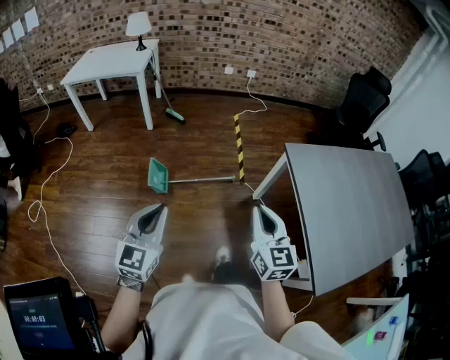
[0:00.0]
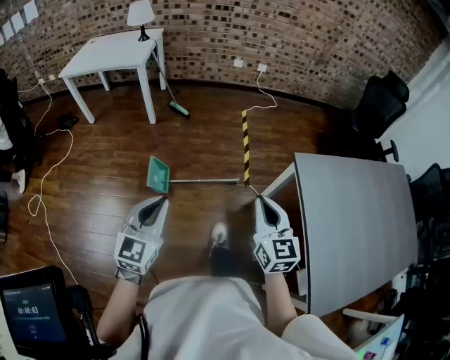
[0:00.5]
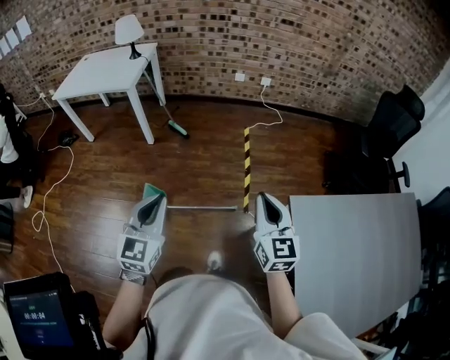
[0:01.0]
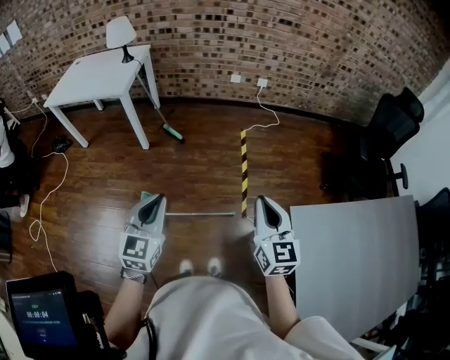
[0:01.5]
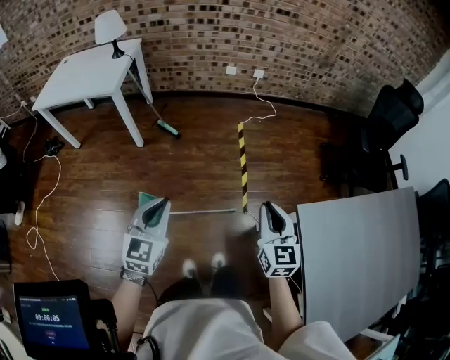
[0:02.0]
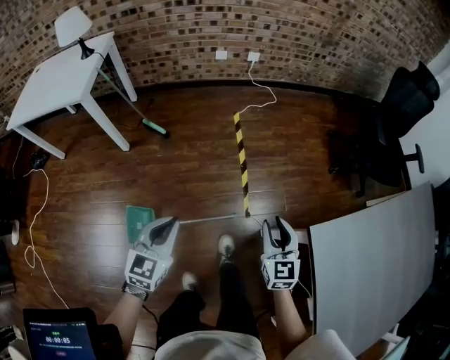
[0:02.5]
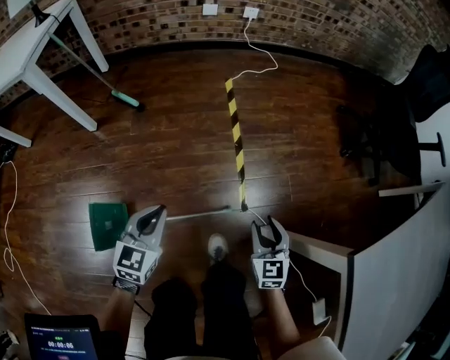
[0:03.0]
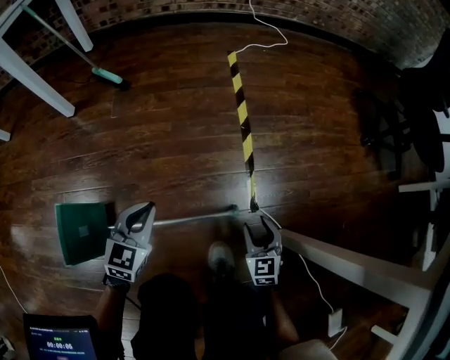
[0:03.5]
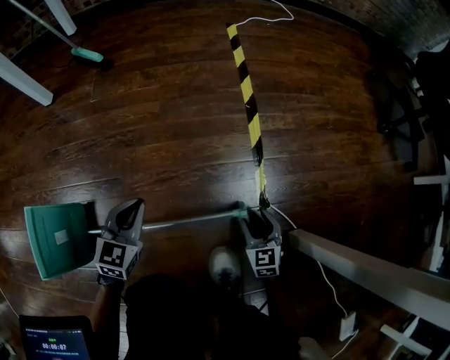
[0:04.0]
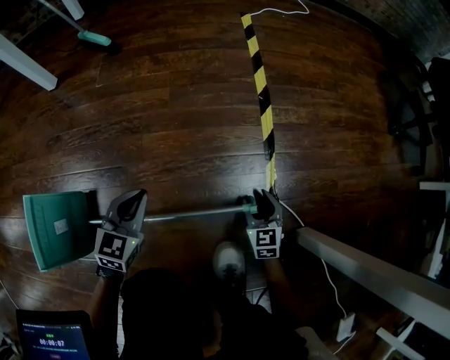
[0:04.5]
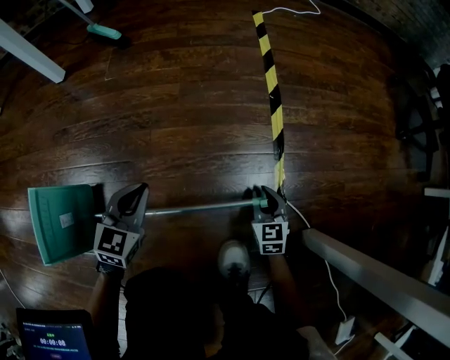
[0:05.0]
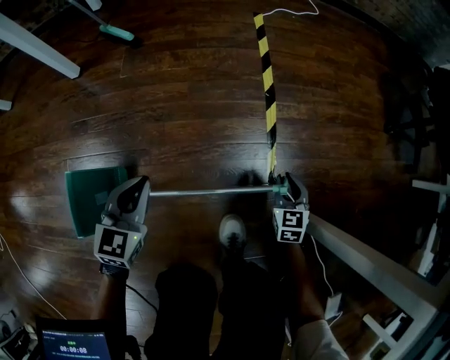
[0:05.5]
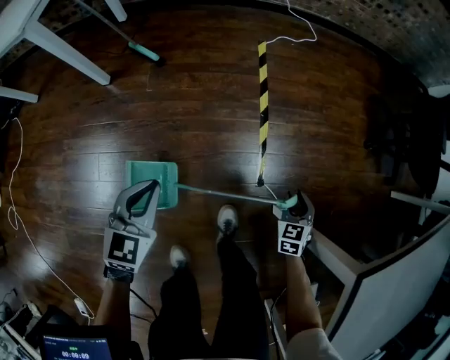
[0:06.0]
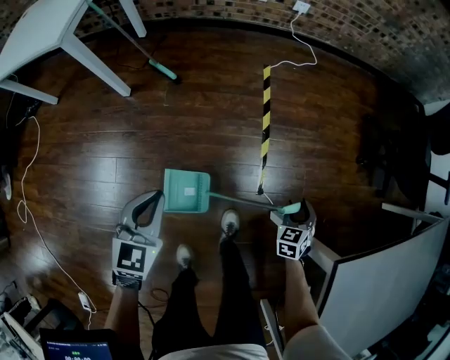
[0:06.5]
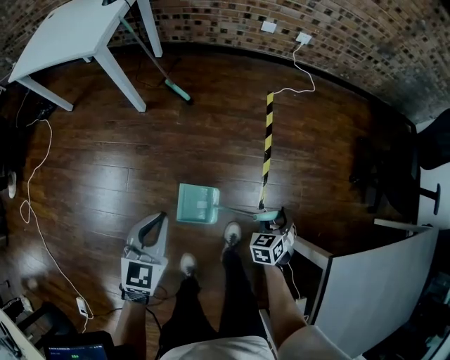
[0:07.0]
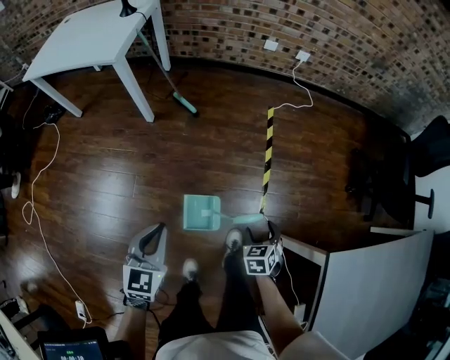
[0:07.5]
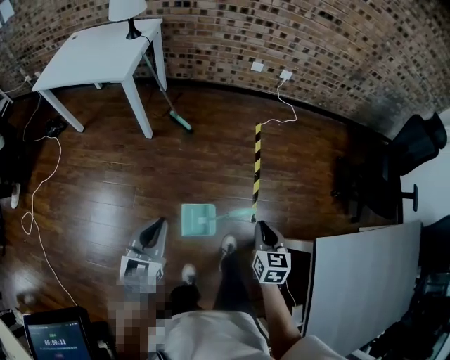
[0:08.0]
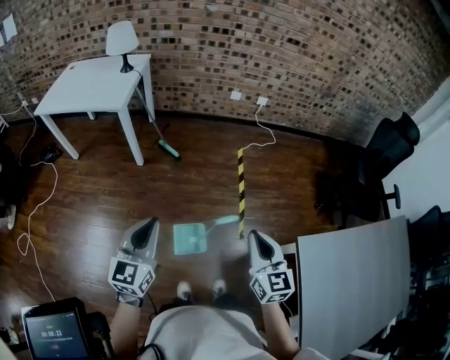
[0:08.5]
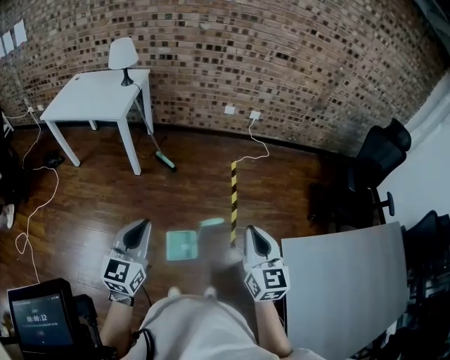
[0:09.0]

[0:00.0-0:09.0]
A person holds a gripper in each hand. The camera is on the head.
0:00.0 to 0:02.0: Both grippers are carried forward, approximately 40 cm.
0:02.0 to 0:04.5: Both grippers move downward, some 90 cm. The right gripper rotates approximately 20 degrees, and opens.
0:04.5 to 0:07.0: Both grippers travel together upward, about 60 cm. The right gripper changes its angle by roughly 30 degrees, and closes, then opens again.
0:07.0 to 0:09.0: The left gripper shifts roughly 30 cm upward and backward, and turns by roughly 20 degrees; the right gripper goes roughly 50 cm upward, angles its fingers upward, by approximately 40 degrees, and closes its fingers.

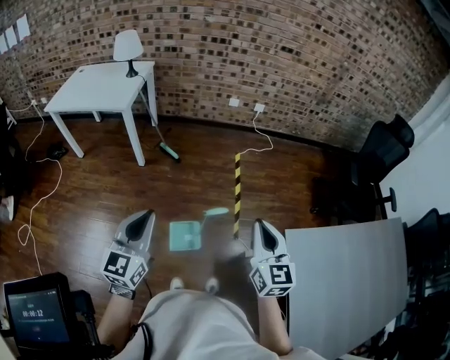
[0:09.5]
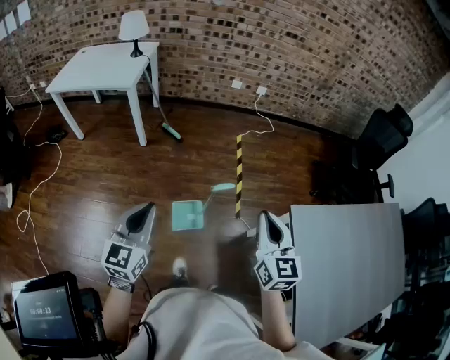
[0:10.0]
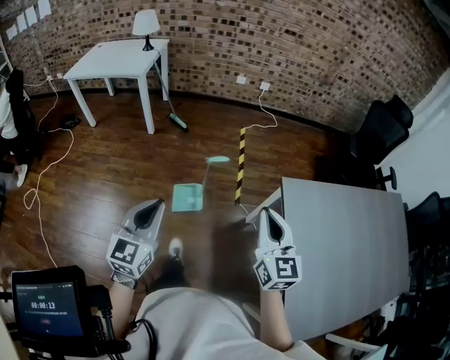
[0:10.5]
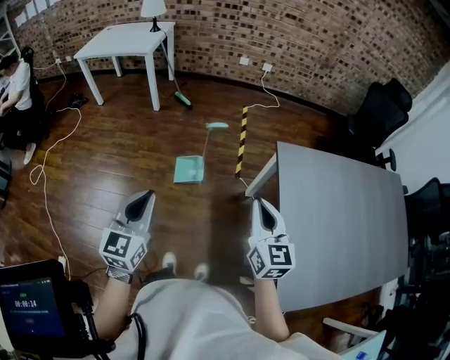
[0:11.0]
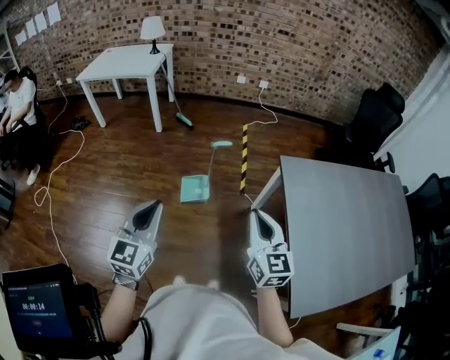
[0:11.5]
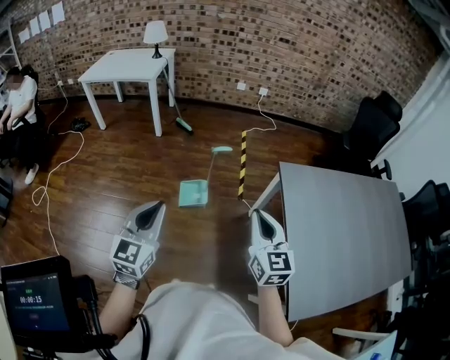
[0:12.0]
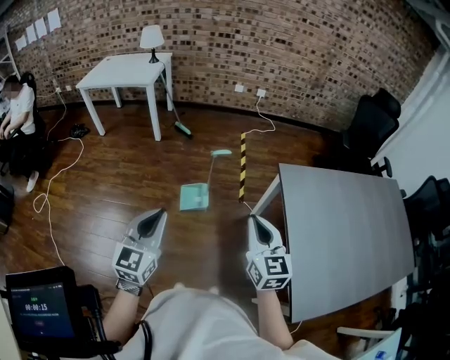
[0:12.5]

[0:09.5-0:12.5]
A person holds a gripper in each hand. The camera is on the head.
0:09.5 to 0:11.0: The grippers both shift backward by about 35 cm.
0:11.0 to 0:12.5: The right gripper moves about 5 cm.

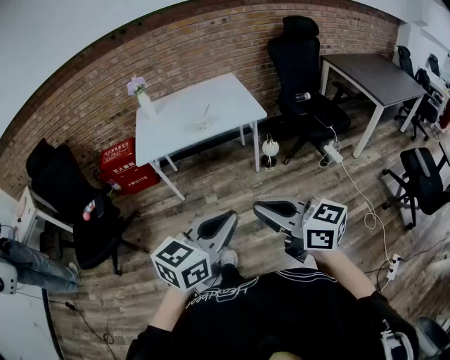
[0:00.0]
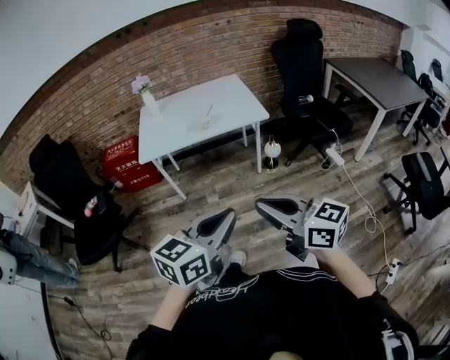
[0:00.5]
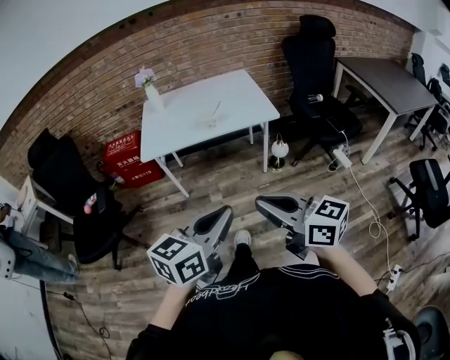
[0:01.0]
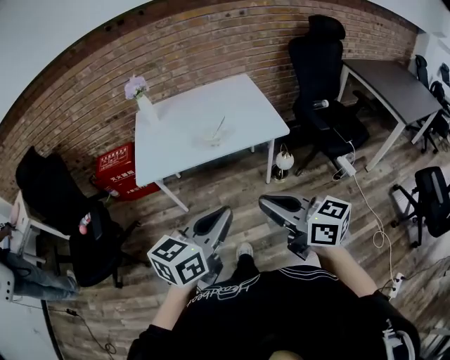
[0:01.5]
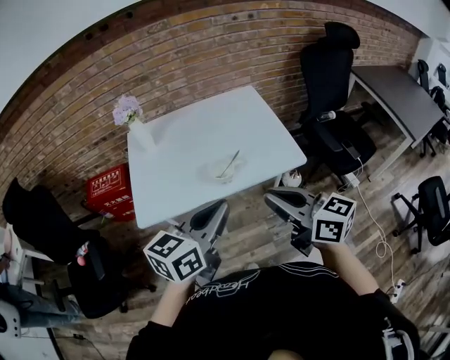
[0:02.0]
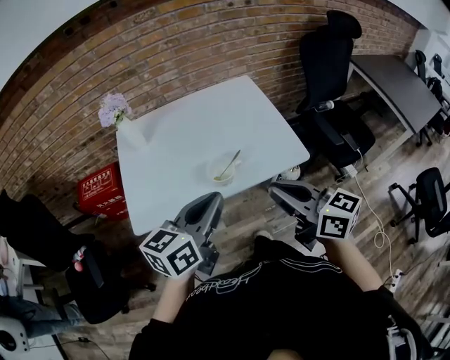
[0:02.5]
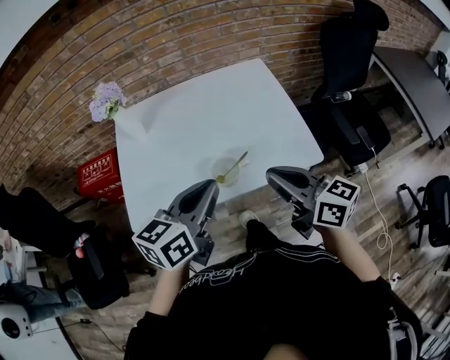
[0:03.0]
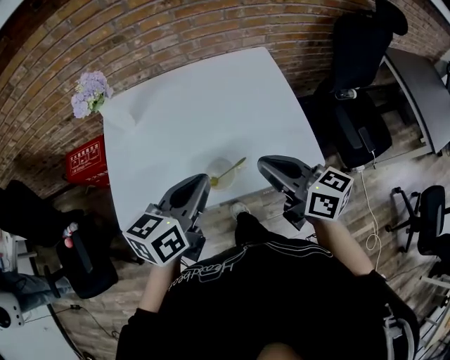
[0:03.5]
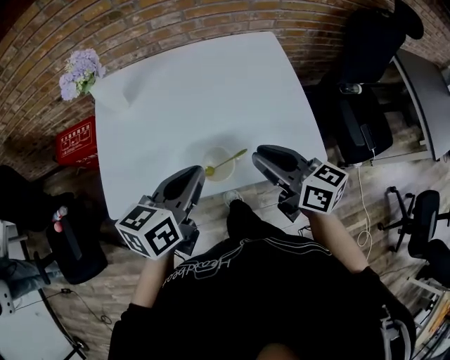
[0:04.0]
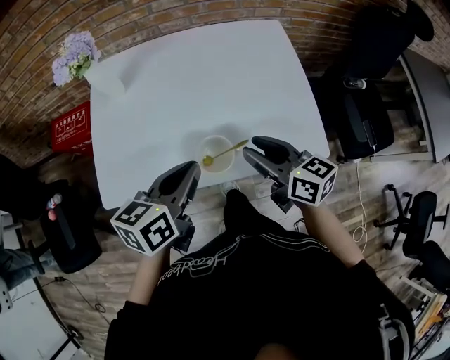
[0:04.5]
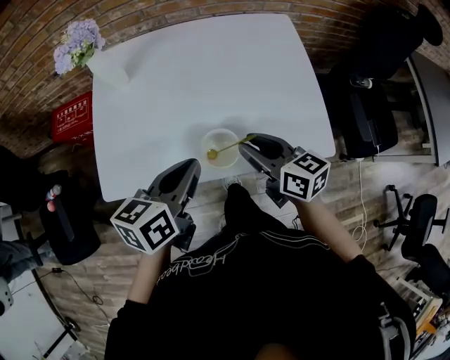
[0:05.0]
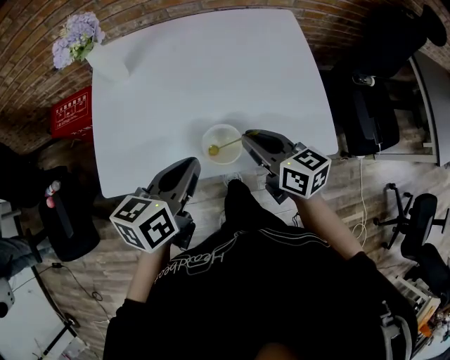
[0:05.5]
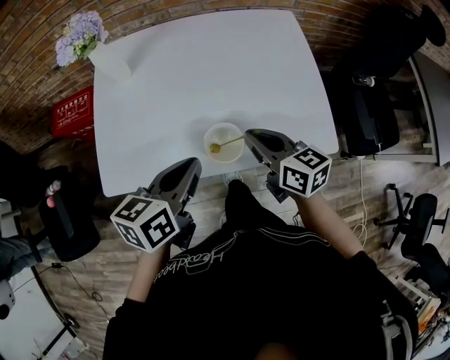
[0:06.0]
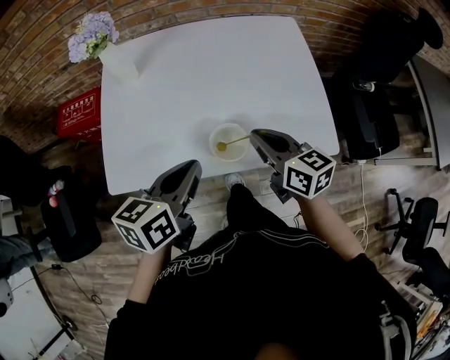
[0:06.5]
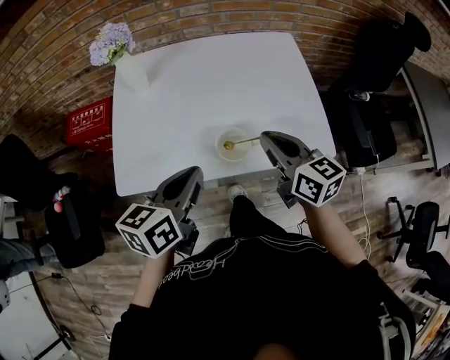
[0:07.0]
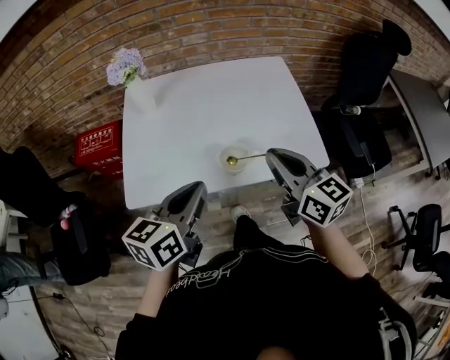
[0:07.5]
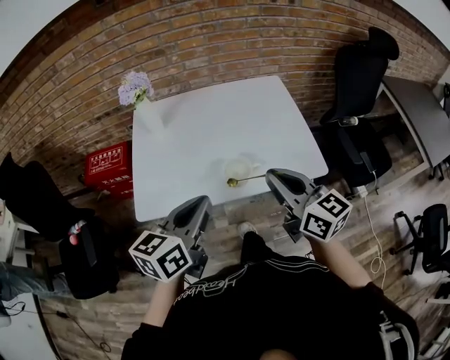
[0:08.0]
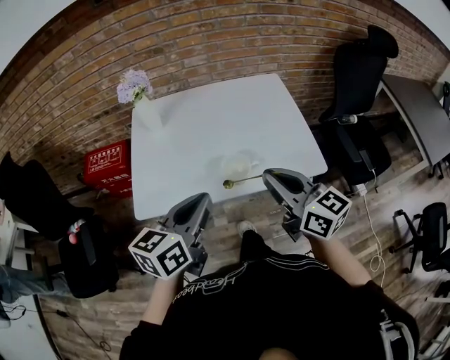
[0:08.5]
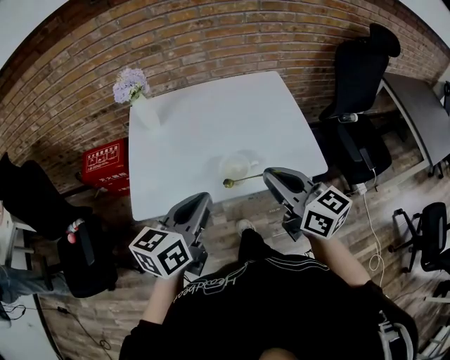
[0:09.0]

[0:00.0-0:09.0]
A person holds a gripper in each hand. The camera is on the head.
0:00.0 to 0:02.0: The pair of grippers is taken forward, roughly 50 cm.
0:02.0 to 0:04.5: Both grippers travel together forward and downward, approximately 30 cm. The right gripper opens. Meanwhile the left gripper changes its angle by some 20 degrees.
0:04.5 to 0:07.0: The left gripper goes some 5 cm to the left; the right gripper changes place by some 5 cm, and closes up.
0:07.0 to 0:09.0: The left gripper is displaced upward and backward by approximately 10 cm; the right gripper travels backward and upward by about 15 cm.

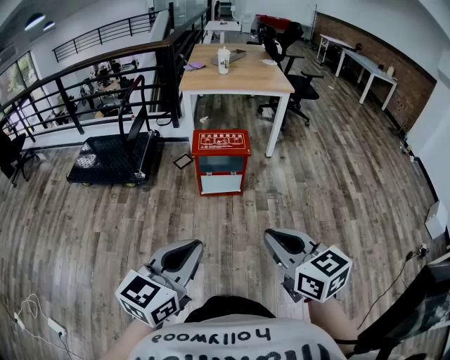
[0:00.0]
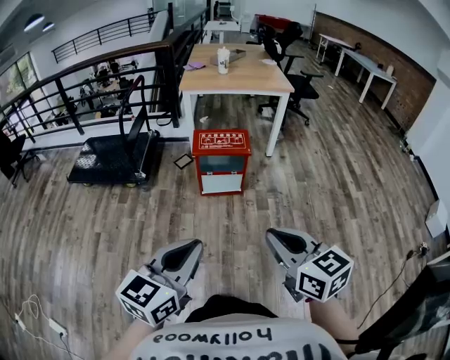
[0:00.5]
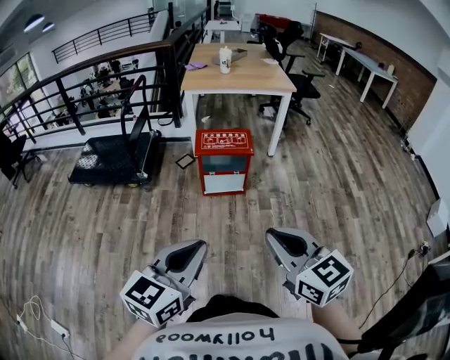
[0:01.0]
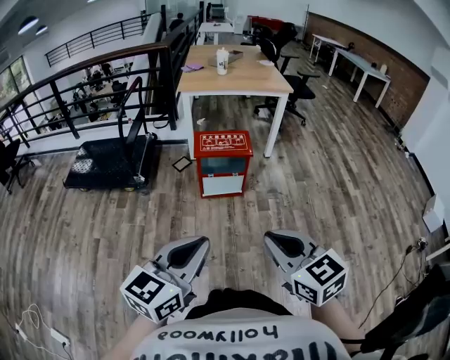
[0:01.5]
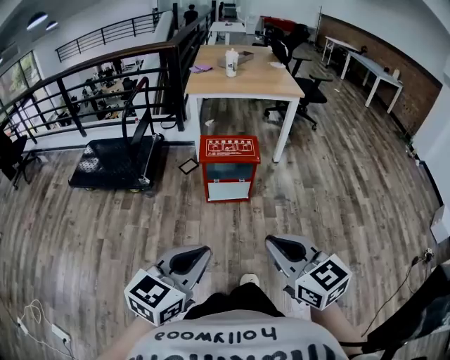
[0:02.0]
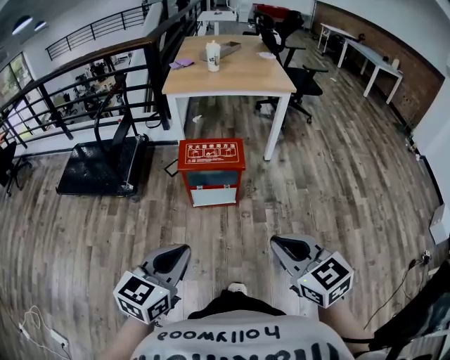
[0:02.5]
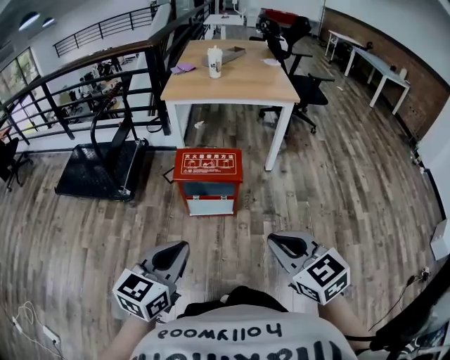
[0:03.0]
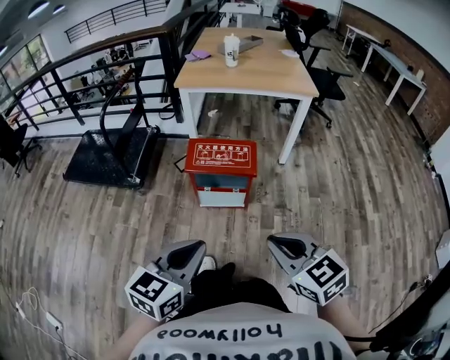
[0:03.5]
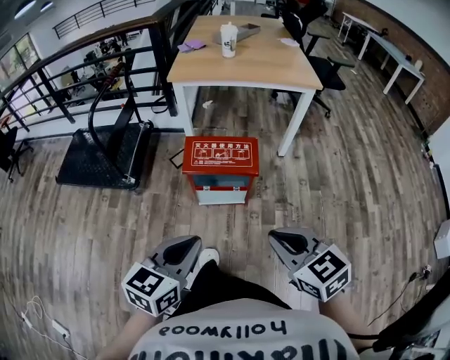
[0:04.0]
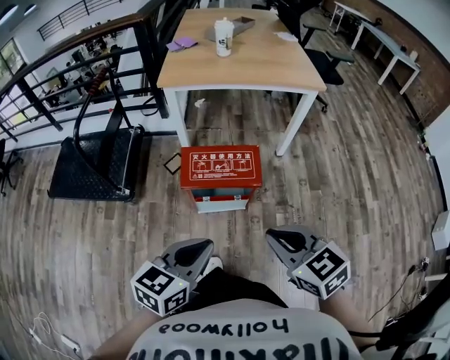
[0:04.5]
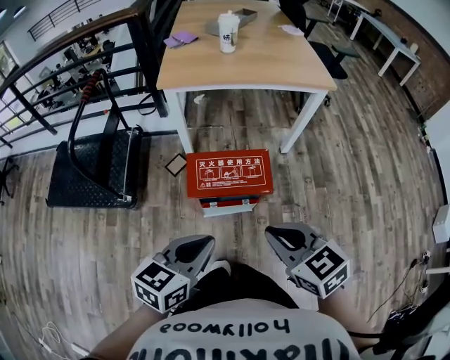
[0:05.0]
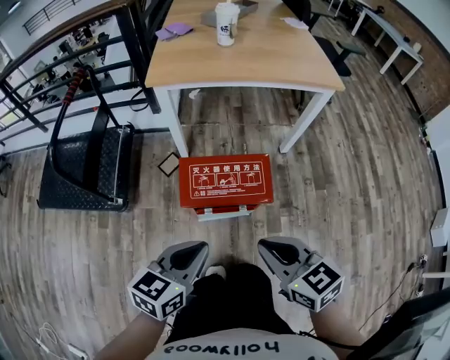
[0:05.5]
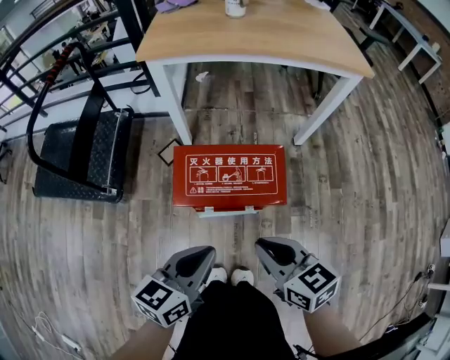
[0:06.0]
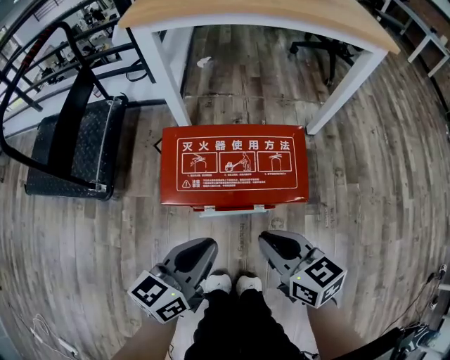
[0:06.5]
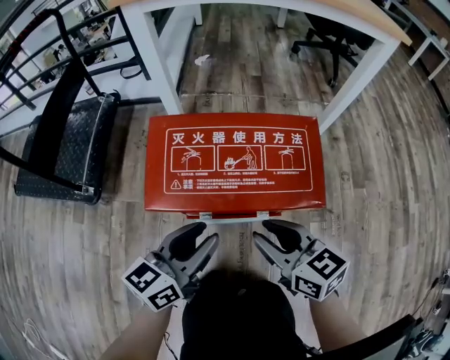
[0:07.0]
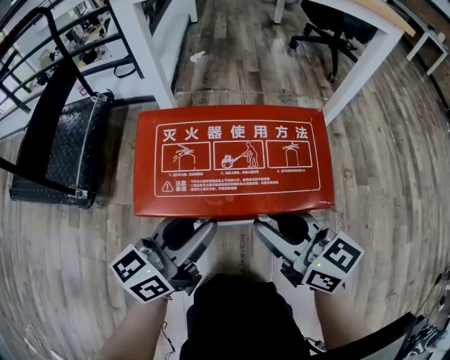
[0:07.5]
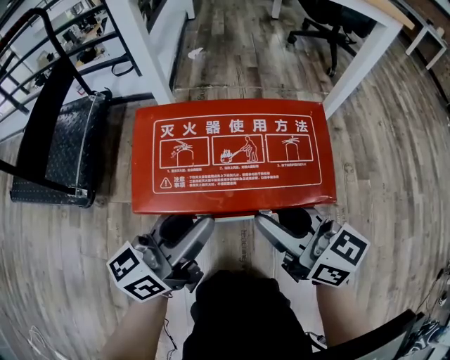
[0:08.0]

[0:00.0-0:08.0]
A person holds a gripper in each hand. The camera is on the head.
0:00.0 to 0:02.0: The left gripper heads forward, covering approximately 5 cm; the right gripper moves about 5 cm.
0:02.0 to 0:04.0: Both grippers move forward, approximately 25 cm.
0:04.0 to 0:06.0: The grippers both shift forward and downward by roughly 30 cm.
0:06.0 to 0:08.0: The grippers both shift downward and forward by some 20 cm. The left gripper turns by about 30 degrees, and opens its fingers. The right gripper rotates approximately 20 degrees, and opens.
